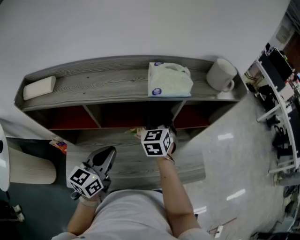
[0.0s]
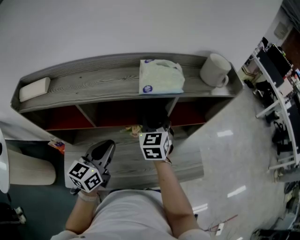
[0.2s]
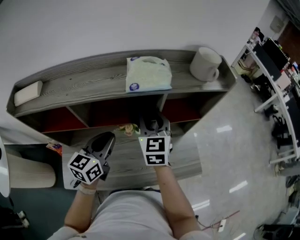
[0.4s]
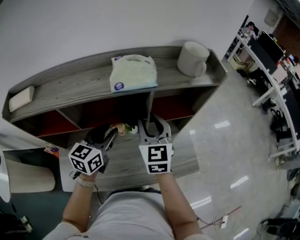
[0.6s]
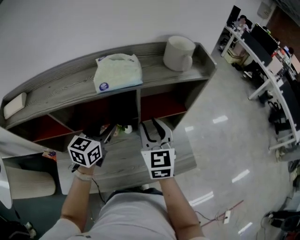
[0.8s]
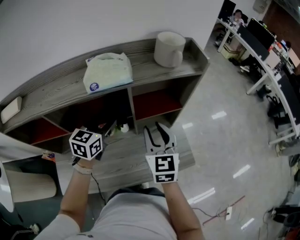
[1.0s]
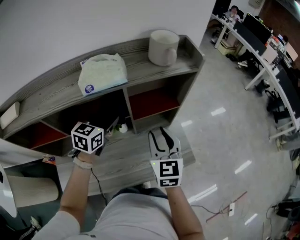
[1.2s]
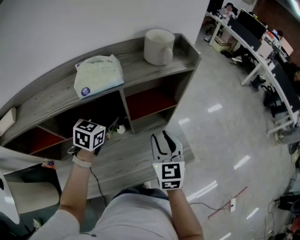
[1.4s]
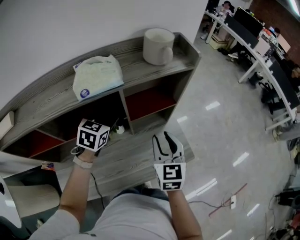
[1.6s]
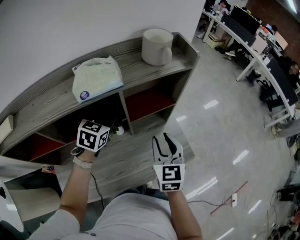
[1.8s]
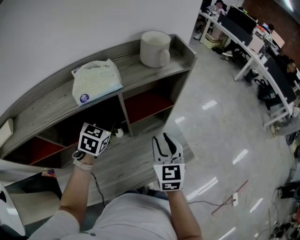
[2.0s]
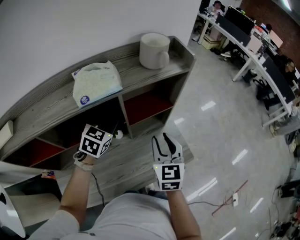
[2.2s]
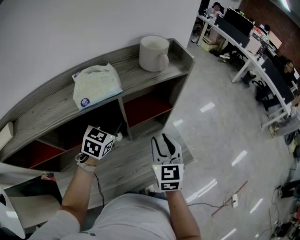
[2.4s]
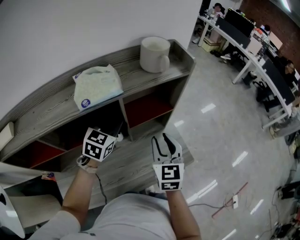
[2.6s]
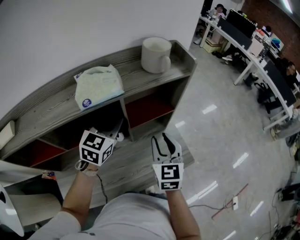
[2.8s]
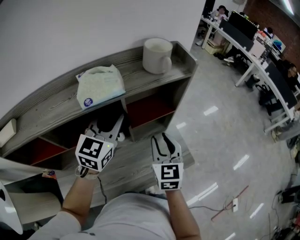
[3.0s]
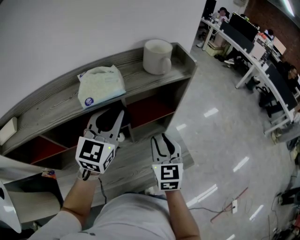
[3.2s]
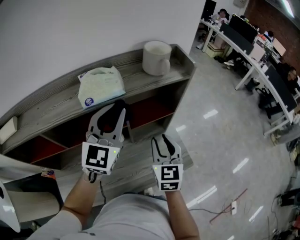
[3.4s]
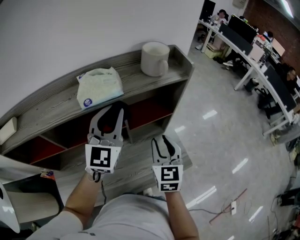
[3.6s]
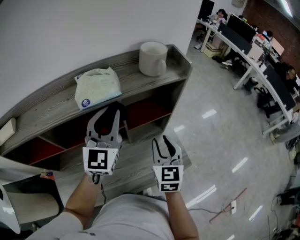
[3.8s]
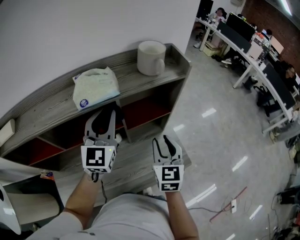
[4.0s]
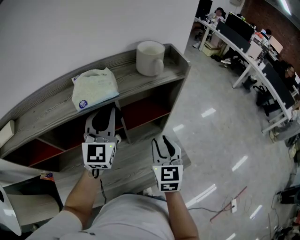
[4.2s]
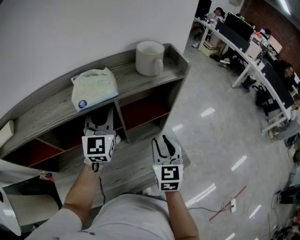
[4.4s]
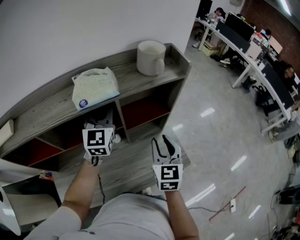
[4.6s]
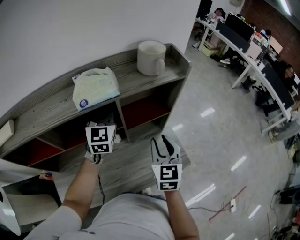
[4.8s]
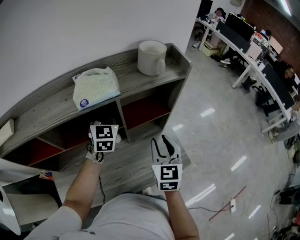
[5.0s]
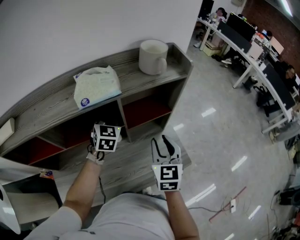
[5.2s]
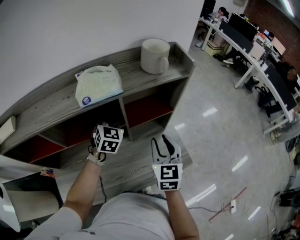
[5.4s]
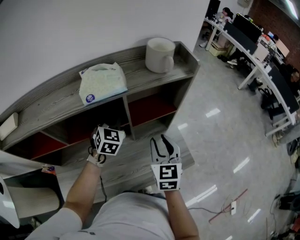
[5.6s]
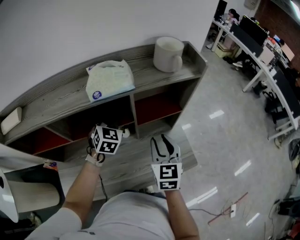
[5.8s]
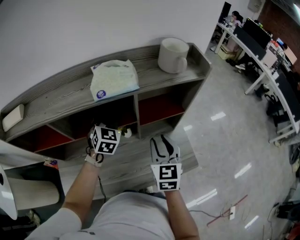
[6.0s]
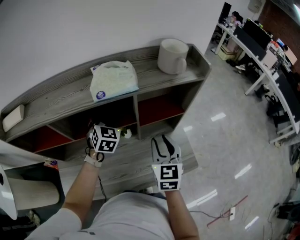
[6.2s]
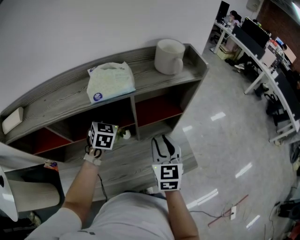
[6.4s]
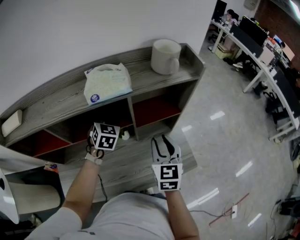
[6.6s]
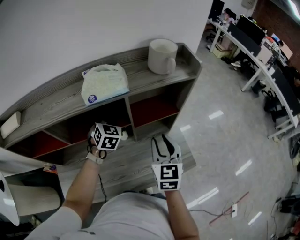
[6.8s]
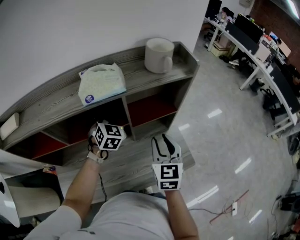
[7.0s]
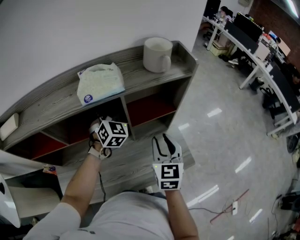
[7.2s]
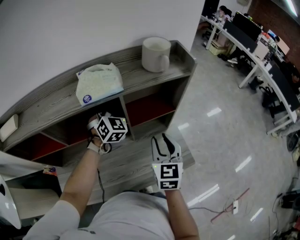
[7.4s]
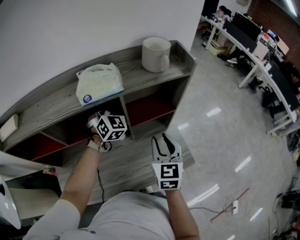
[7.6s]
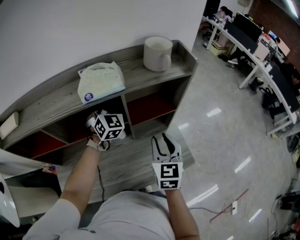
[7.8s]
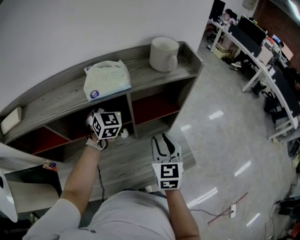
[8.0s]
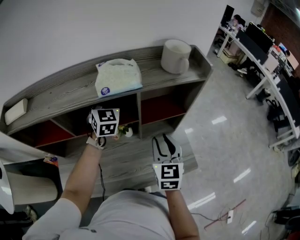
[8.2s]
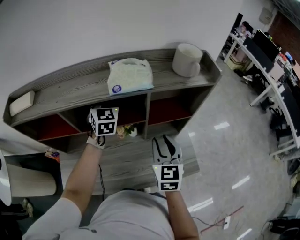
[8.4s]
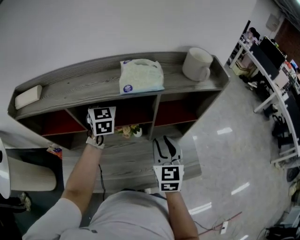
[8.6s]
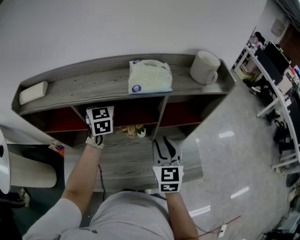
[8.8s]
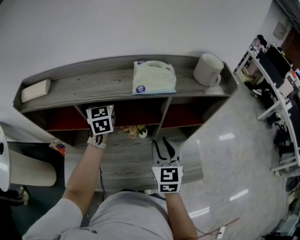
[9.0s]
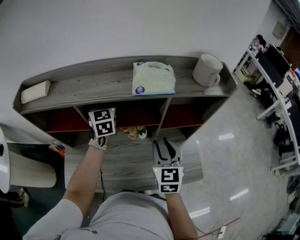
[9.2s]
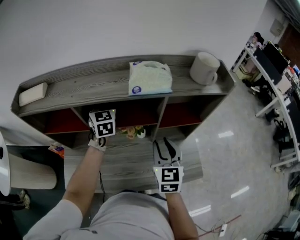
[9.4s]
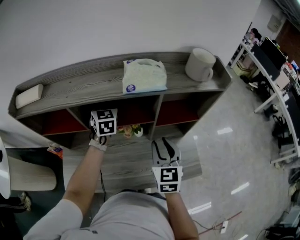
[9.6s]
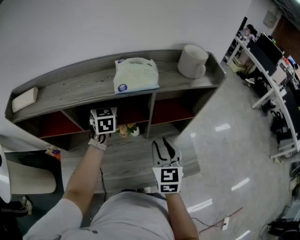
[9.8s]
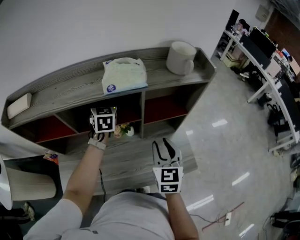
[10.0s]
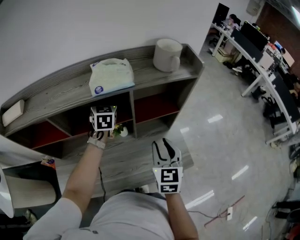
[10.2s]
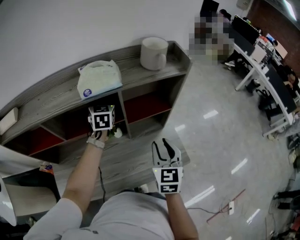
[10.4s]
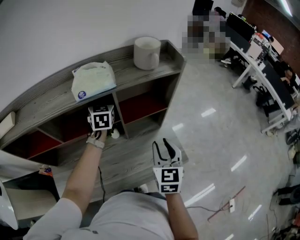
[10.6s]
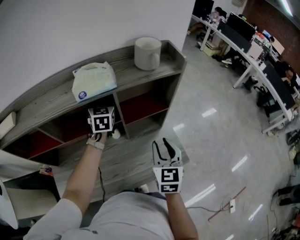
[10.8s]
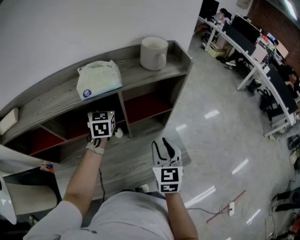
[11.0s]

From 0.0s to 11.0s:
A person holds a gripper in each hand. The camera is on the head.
From 0.0s to 1.6s: The left gripper shifts approximately 25 cm forward and to the right, changes its angle by some 40 degrees, and opens its fingers, while the right gripper heads to the right and backward, covering roughly 25 cm, and turns by approximately 20 degrees.
From 1.6s to 3.2s: The left gripper goes some 15 cm upward, angles its fingers upward, by about 30 degrees, and closes up.
From 3.2s to 4.8s: The left gripper is displaced forward by roughly 10 cm.
From 4.8s to 6.2s: The left gripper goes some 10 cm downward and to the left, changes its angle by some 30 degrees, and opens up.
From 6.2s to 7.8s: The left gripper goes some 10 cm upward and forward, swivels approximately 20 degrees, and closes up.
From 7.8s to 9.4s: The right gripper heads to the left, covering approximately 10 cm. The left gripper shifts roughly 20 cm to the left, and changes its angle by about 30 degrees.
From 9.4s to 11.0s: The left gripper travels to the right by roughly 20 cm, and turns by approximately 20 degrees, while the right gripper shifts roughly 10 cm to the right.

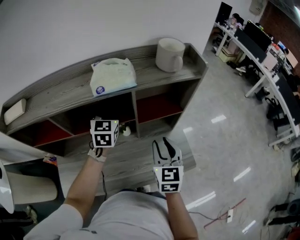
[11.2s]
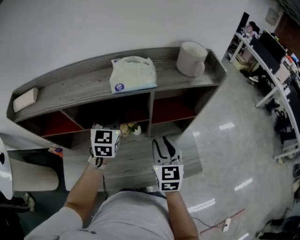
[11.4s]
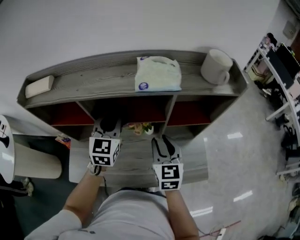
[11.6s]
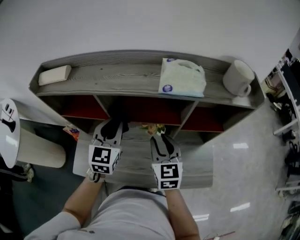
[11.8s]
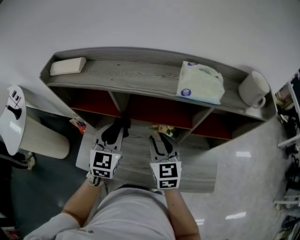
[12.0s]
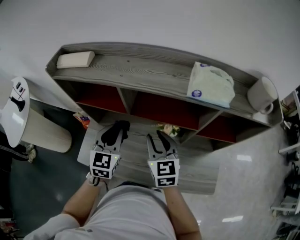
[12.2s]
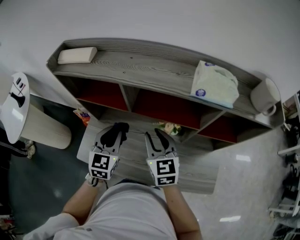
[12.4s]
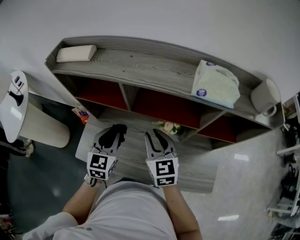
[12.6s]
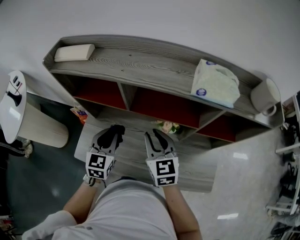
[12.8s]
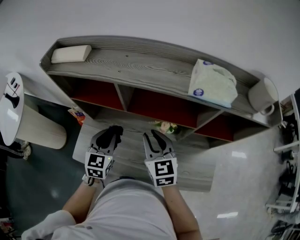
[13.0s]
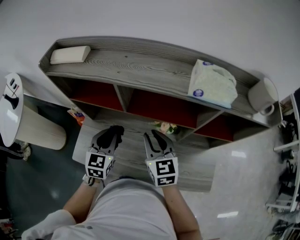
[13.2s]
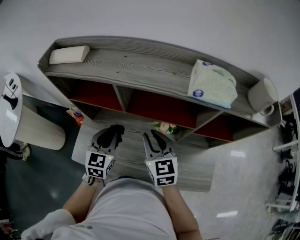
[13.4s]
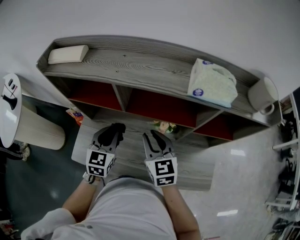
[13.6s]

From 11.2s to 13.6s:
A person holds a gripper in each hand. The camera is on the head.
From 11.2s to 12.4s: The left gripper moves roughly 30 cm, and swivels approximately 20 degrees. Meanwhile the right gripper changes place by some 25 cm, and swivels approximately 40 degrees.
From 12.4s to 13.6s: The grippers make only small movements.

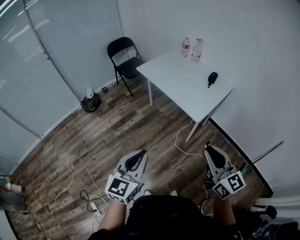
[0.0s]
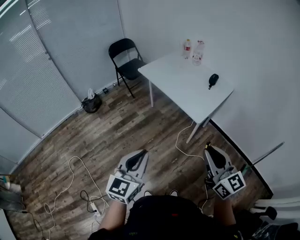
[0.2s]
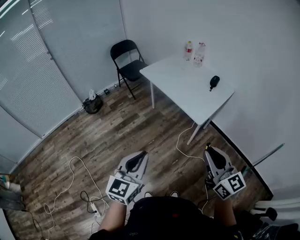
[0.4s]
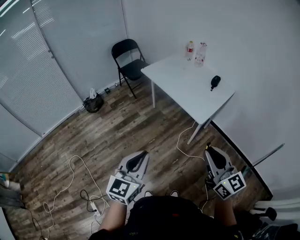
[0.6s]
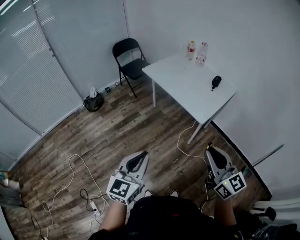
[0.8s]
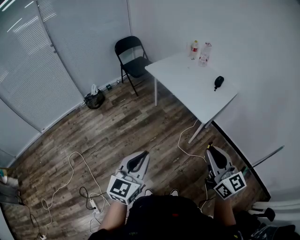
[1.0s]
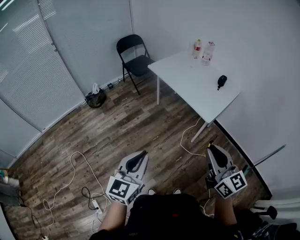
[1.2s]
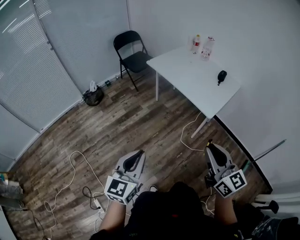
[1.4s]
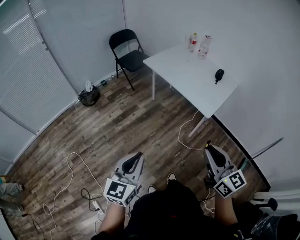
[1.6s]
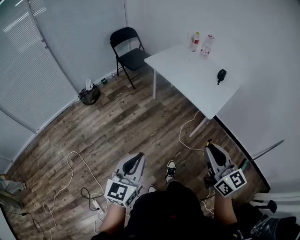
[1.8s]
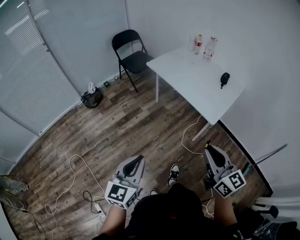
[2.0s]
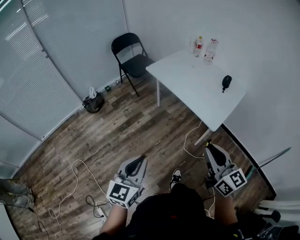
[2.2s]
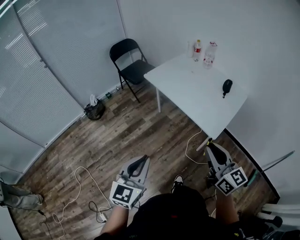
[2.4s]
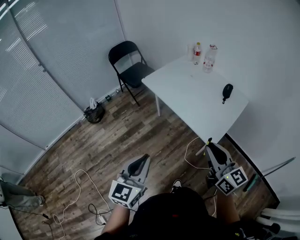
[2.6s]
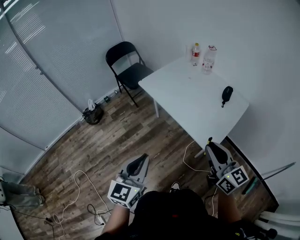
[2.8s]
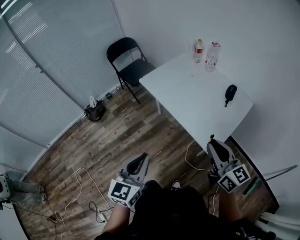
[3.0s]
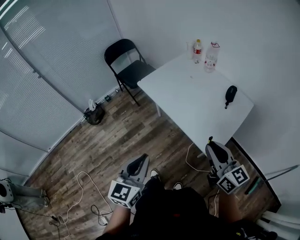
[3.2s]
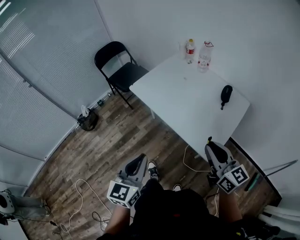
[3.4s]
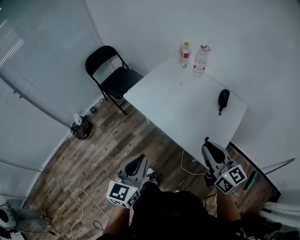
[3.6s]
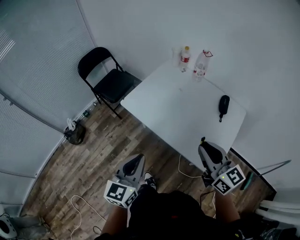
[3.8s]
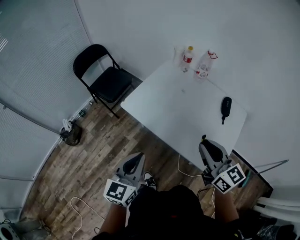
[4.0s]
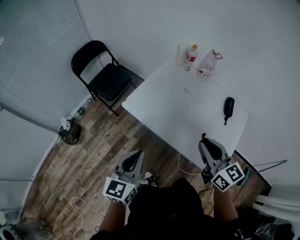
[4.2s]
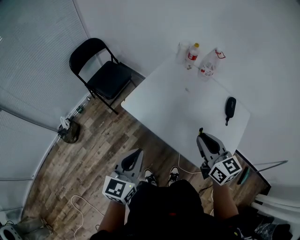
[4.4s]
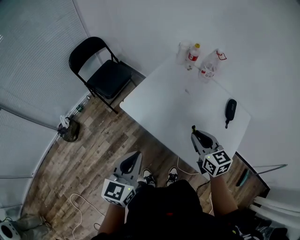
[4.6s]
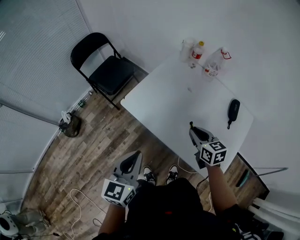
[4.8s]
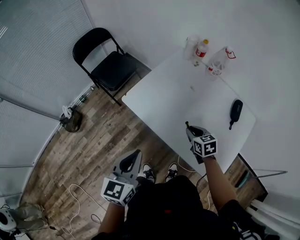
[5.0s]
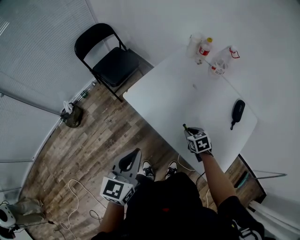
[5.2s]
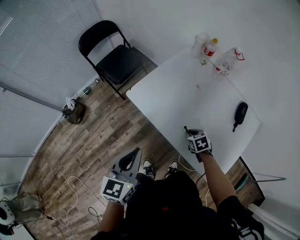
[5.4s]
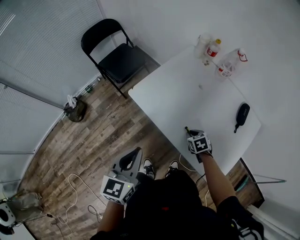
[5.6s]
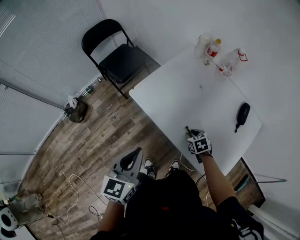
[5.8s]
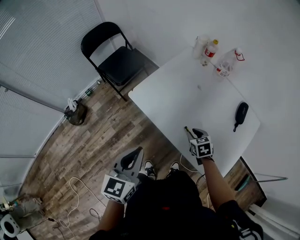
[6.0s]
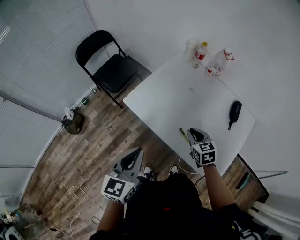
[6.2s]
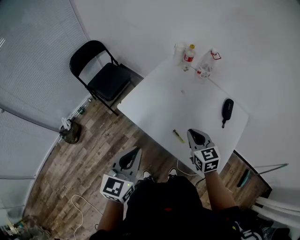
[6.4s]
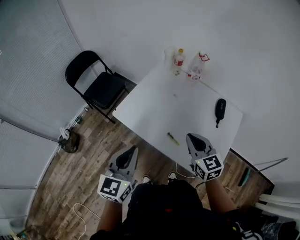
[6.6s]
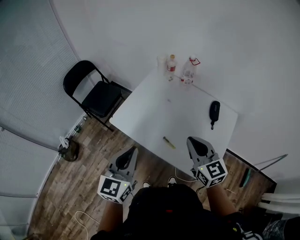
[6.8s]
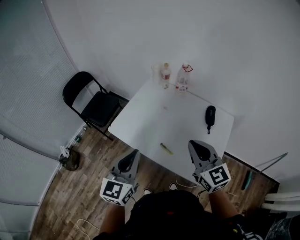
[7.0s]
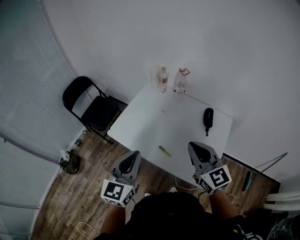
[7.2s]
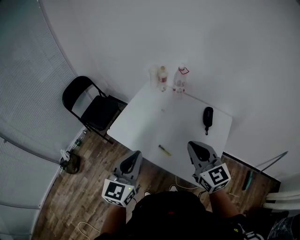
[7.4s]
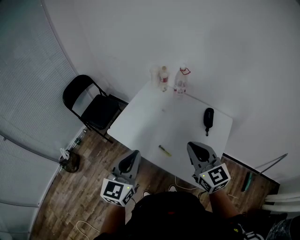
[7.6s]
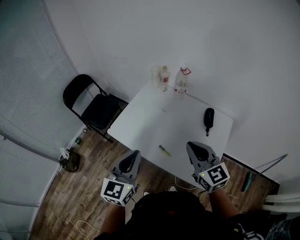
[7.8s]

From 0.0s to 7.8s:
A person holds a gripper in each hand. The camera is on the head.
From 0.0s to 1.6s: Both grippers travel together to the left, about 15 cm.
From 1.6s to 3.2s: The right gripper moves forward, roughly 35 cm. Meanwhile the left gripper is displaced forward and to the right by about 35 cm.
From 3.2s to 4.6s: Both grippers move forward, some 35 cm. The right gripper changes its angle by about 30 degrees.
From 4.6s to 6.2s: The right gripper is displaced downward by roughly 10 cm.
From 6.2s to 7.8s: The right gripper goes some 25 cm upward, and turns by roughly 30 degrees. Meanwhile the left gripper is displaced to the right and upward by roughly 15 cm.

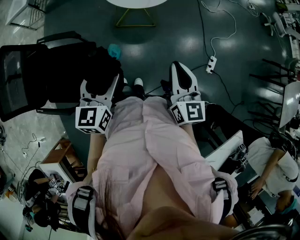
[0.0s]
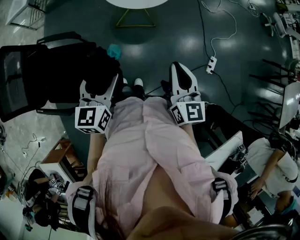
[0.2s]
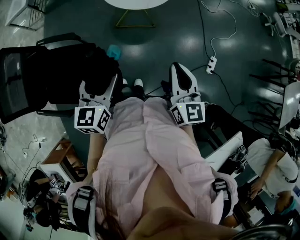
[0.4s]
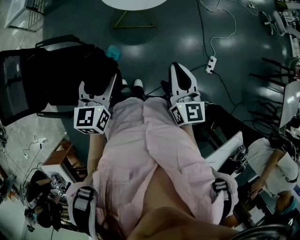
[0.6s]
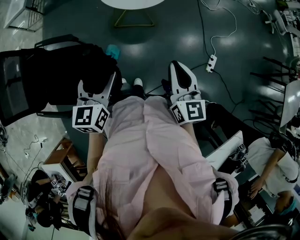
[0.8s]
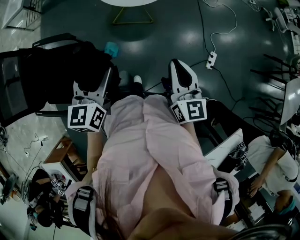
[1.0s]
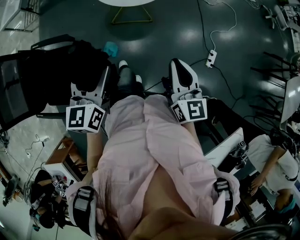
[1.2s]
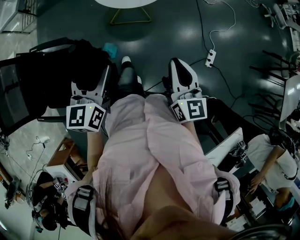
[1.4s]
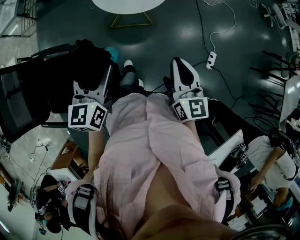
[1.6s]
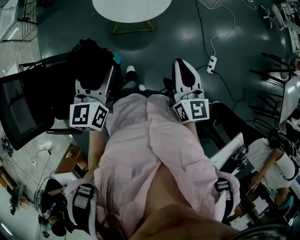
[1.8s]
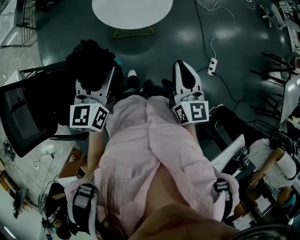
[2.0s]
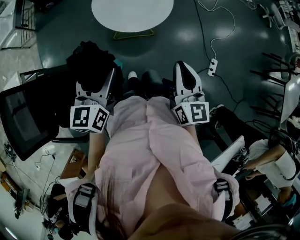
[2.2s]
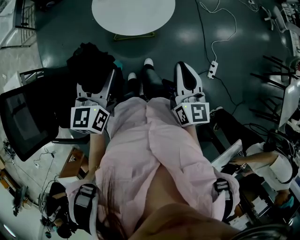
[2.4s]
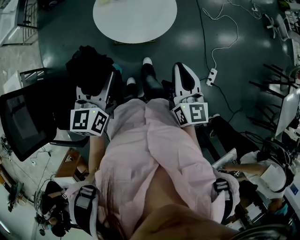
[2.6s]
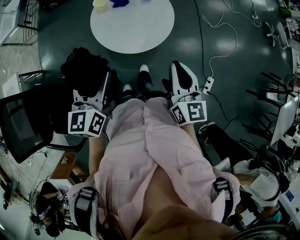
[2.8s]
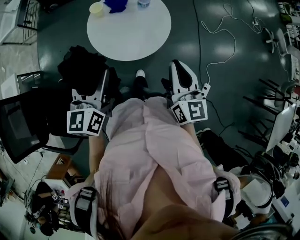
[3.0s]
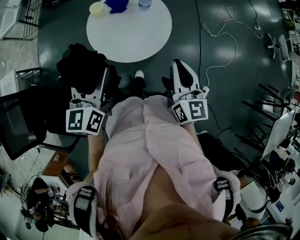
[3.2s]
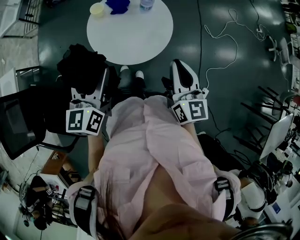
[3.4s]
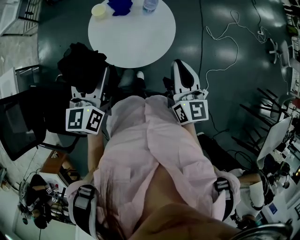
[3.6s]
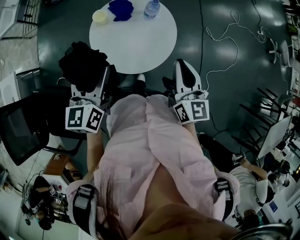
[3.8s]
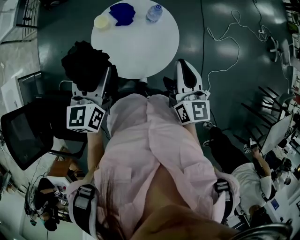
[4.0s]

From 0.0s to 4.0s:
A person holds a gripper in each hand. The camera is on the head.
From 0.0s to 1.4s: The left gripper is displaced forward by approximately 10 cm. The right gripper travels forward by about 5 cm.
From 1.4s to 2.6s: The grippers both shift forward by approximately 20 cm.
From 2.6s to 4.0s: Both grippers move forward, approximately 25 cm.
